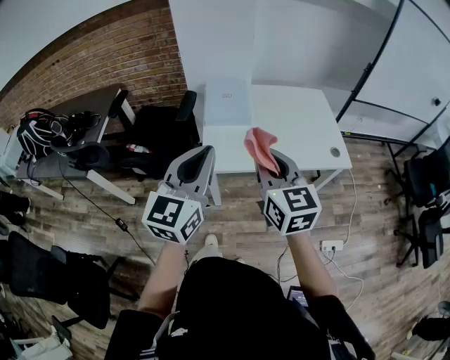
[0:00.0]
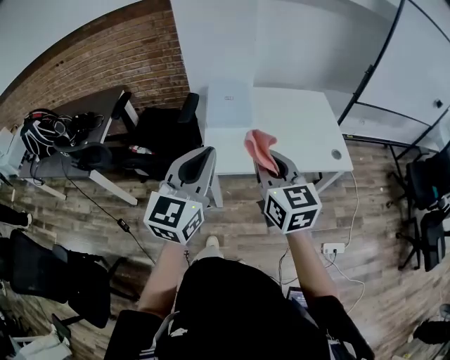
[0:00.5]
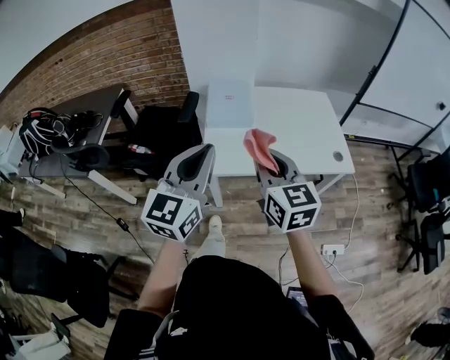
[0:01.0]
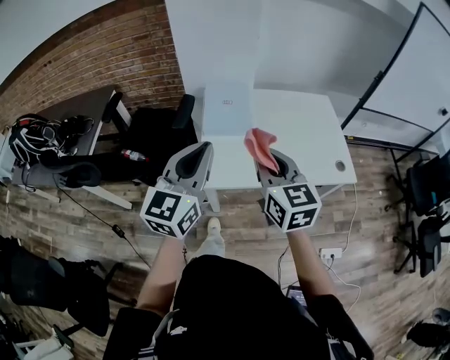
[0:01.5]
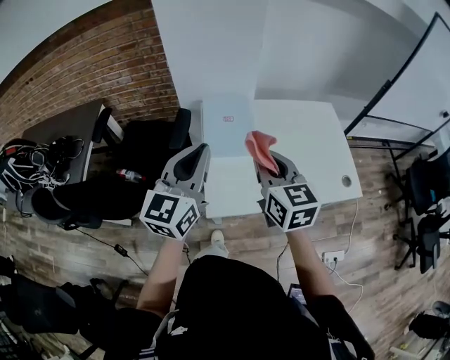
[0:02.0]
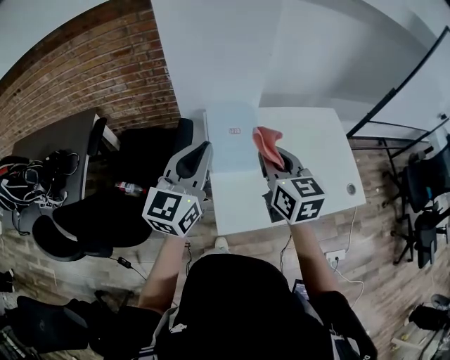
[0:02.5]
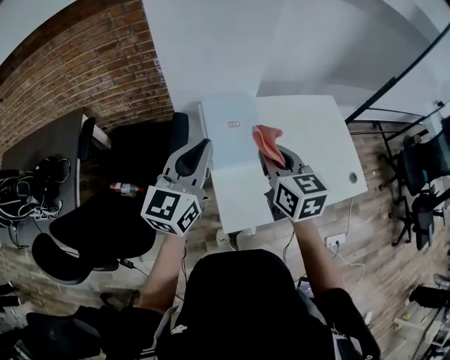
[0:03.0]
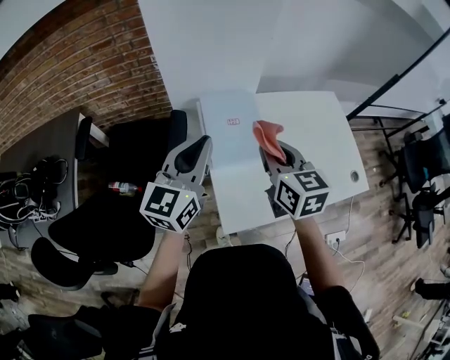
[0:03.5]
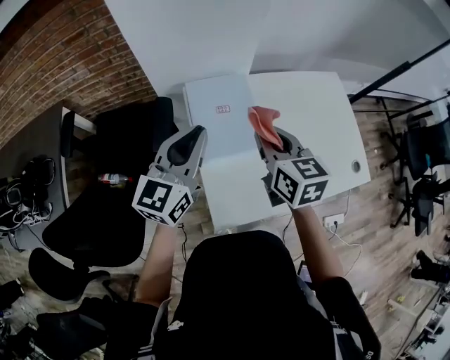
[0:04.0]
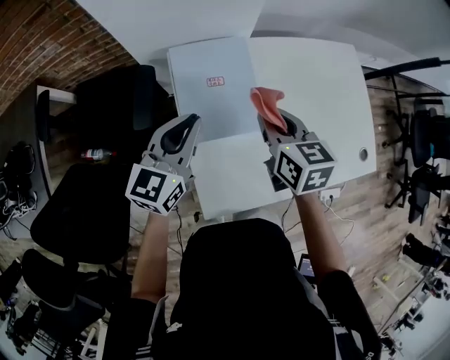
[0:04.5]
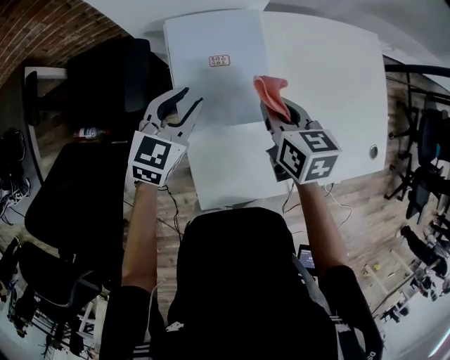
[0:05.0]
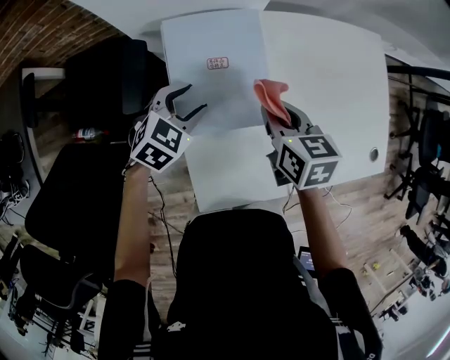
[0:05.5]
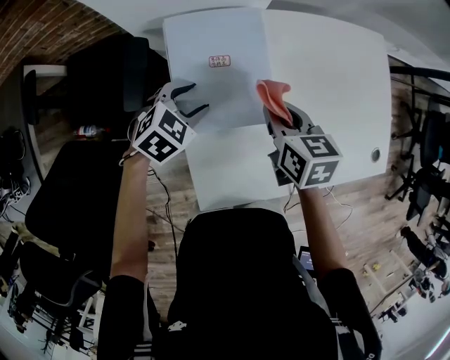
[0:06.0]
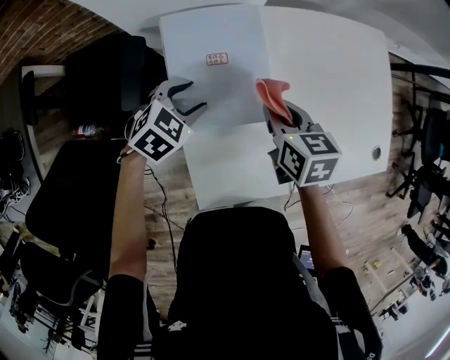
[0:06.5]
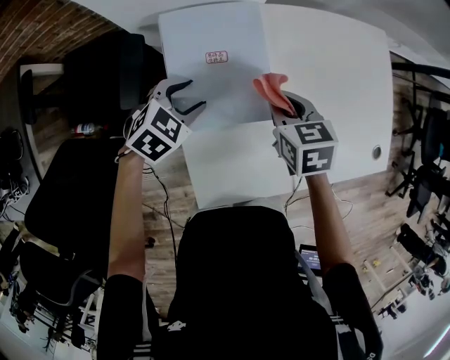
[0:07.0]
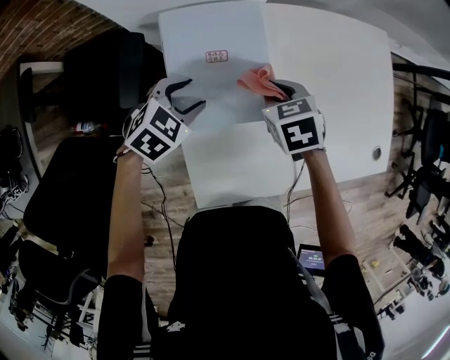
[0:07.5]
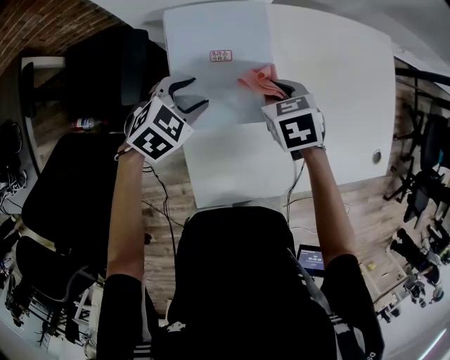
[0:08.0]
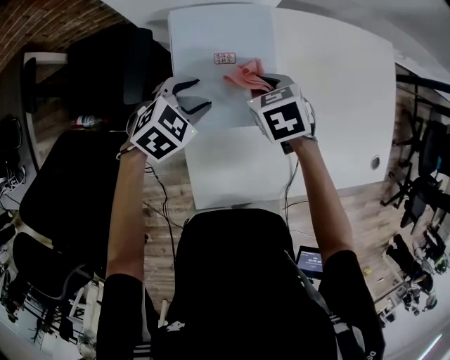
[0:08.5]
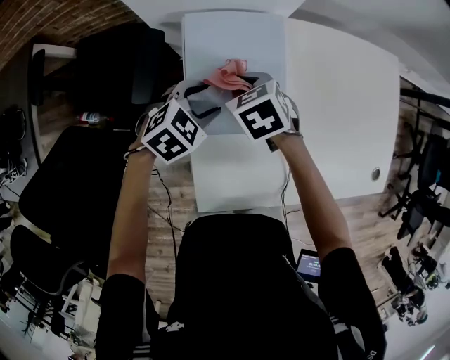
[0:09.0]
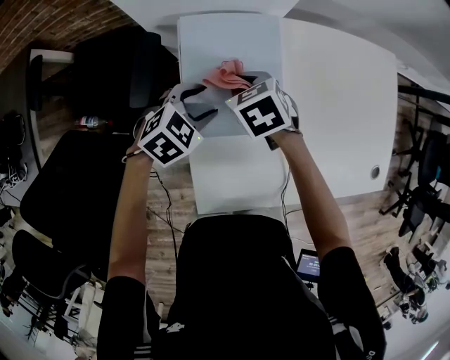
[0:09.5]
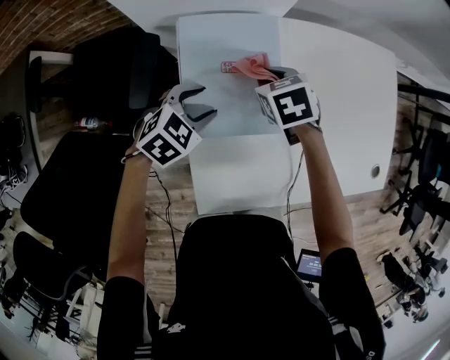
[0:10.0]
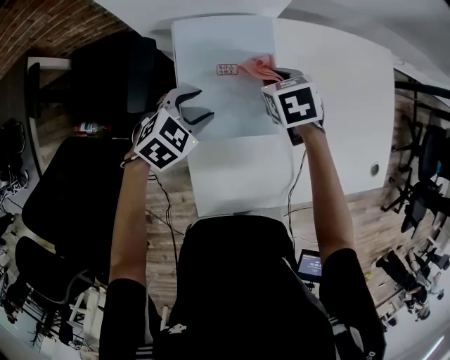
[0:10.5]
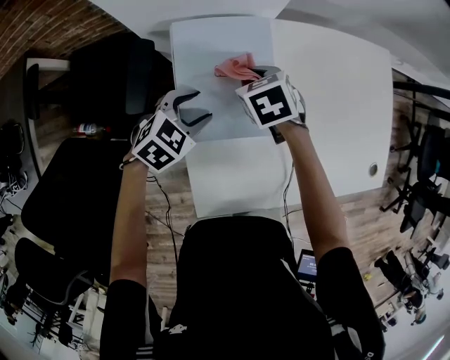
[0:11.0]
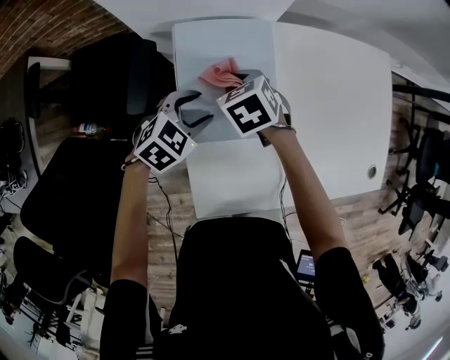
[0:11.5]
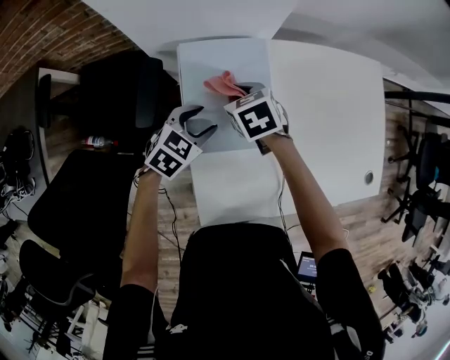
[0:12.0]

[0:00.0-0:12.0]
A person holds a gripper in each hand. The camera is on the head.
0:00.0 to 0:02.0: The two grippers go some 25 cm forward.
0:02.0 to 0:04.0: The grippers both shift forward and downward by about 20 cm.
0:04.0 to 0:06.0: The right gripper moves downward, some 20 cm, and changes its angle by roughly 20 degrees. The left gripper is displaced downward by about 30 cm, points its fingers some 50 degrees further downward, and opens its fingers.
0:06.0 to 0:08.0: The right gripper is displaced downward by some 5 cm, and swivels roughly 30 degrees.
0:08.0 to 0:10.0: The right gripper goes some 5 cm forward.
0:10.0 to 0:12.0: The right gripper goes some 5 cm to the left.

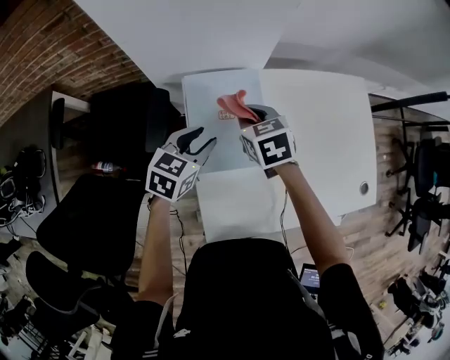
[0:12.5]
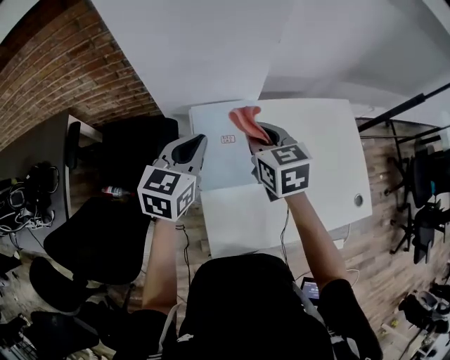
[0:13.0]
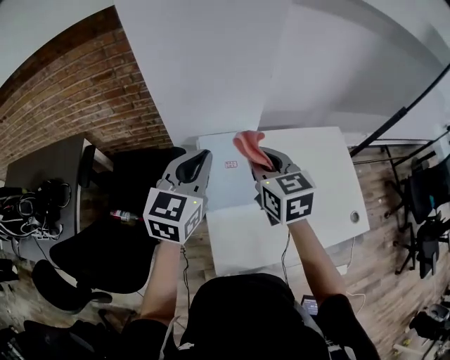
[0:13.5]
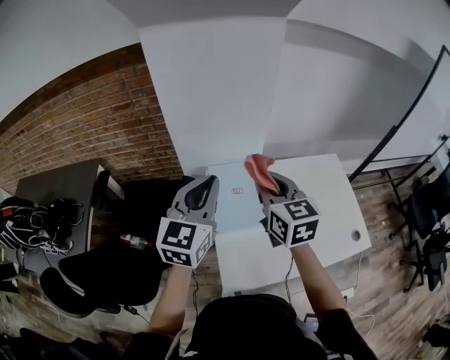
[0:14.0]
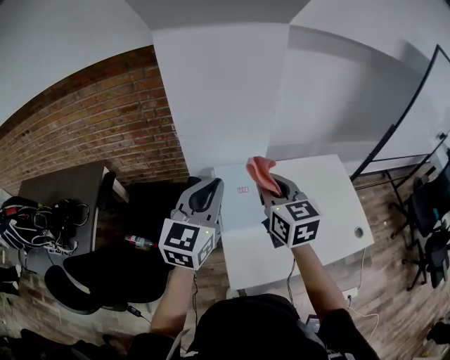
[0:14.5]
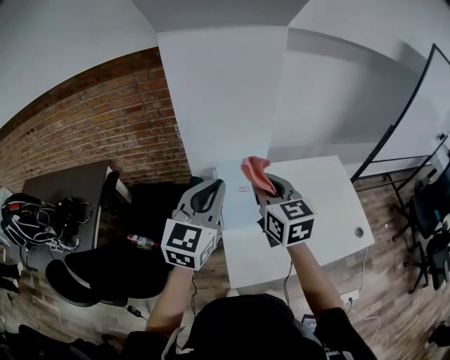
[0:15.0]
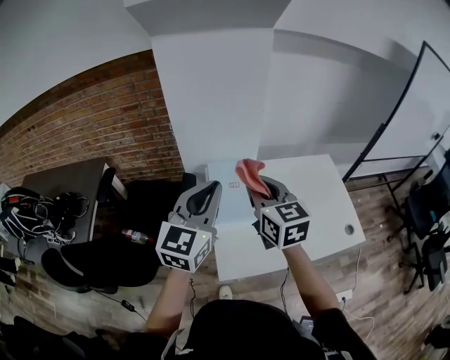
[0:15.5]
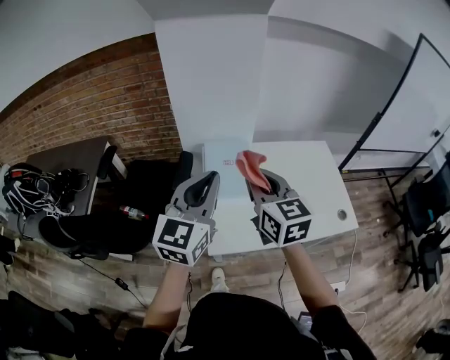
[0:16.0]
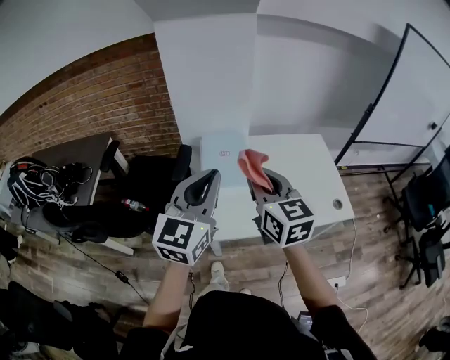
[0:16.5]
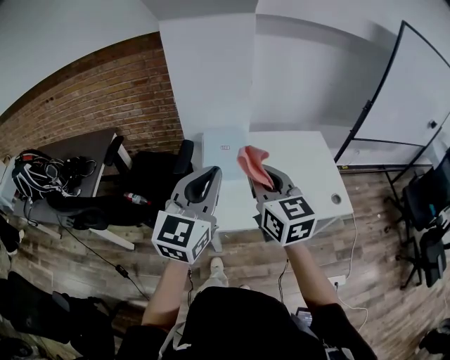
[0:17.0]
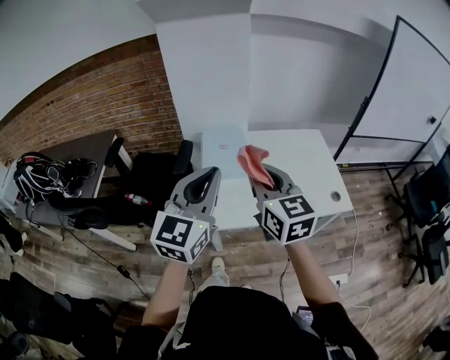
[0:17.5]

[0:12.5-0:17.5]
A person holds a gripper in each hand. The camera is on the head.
0:12.5 to 0:15.0: Both grippers travel together upward and backward, some 35 cm. The left gripper angles its fingers upward, by some 30 degrees, and closes its fingers. The right gripper points its fingers some 40 degrees further upward.
0:15.0 to 0:17.5: The two grippers go roughly 30 cm backward and to the right.

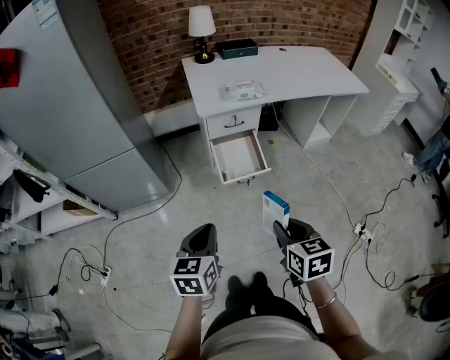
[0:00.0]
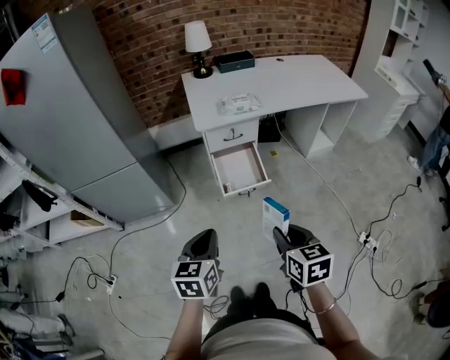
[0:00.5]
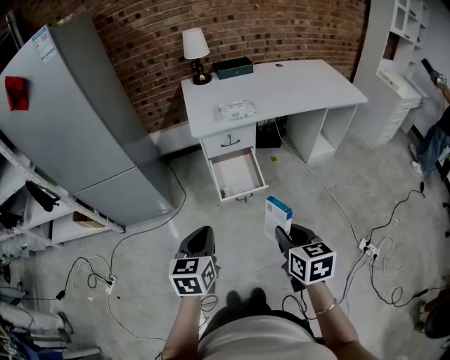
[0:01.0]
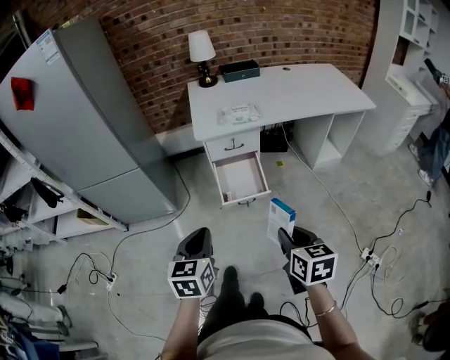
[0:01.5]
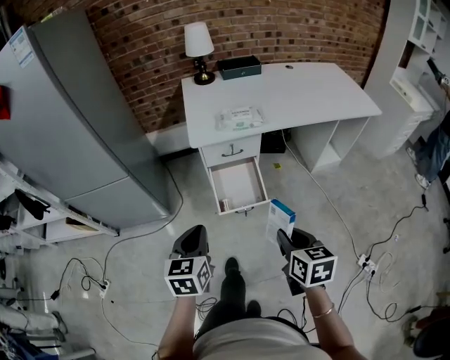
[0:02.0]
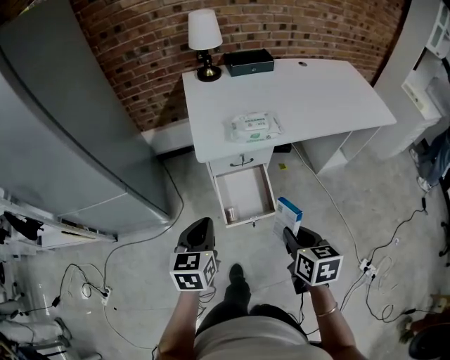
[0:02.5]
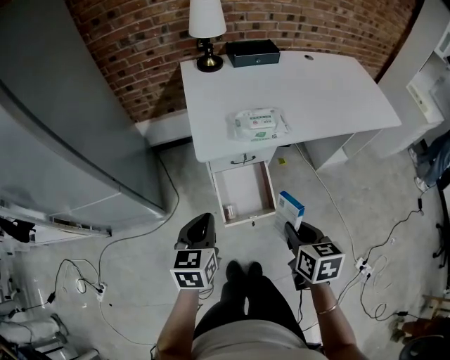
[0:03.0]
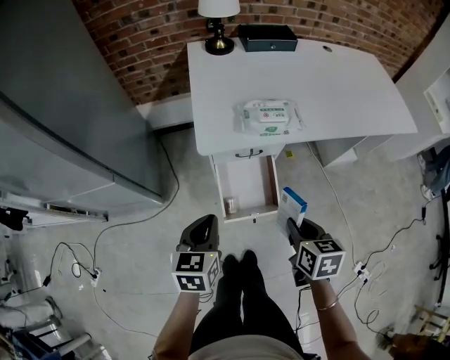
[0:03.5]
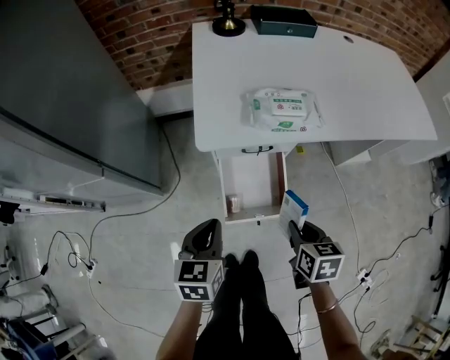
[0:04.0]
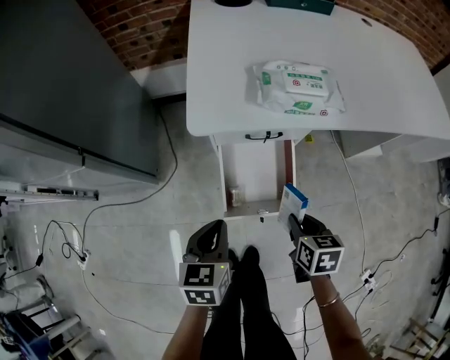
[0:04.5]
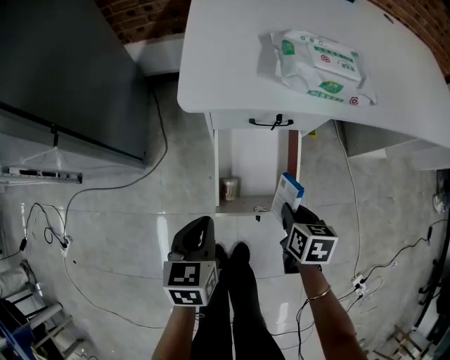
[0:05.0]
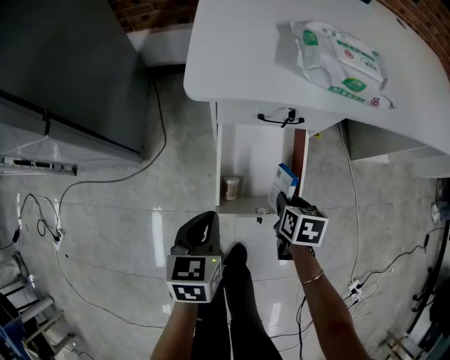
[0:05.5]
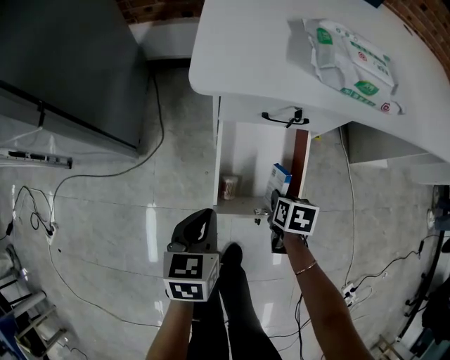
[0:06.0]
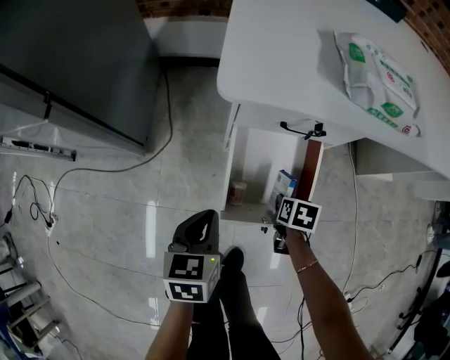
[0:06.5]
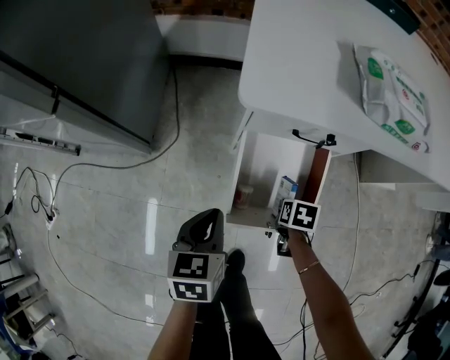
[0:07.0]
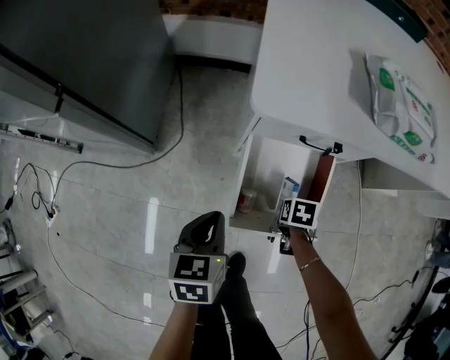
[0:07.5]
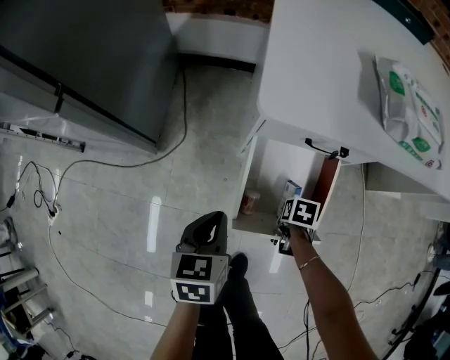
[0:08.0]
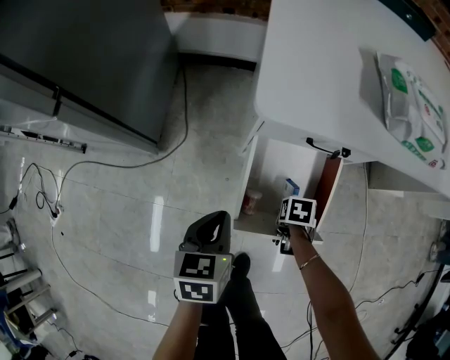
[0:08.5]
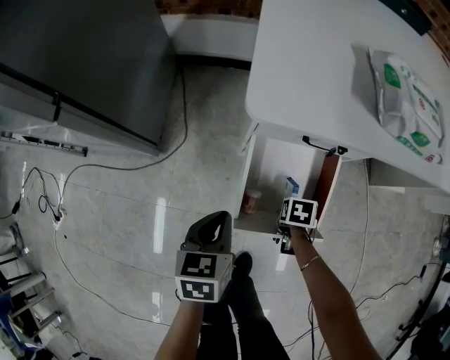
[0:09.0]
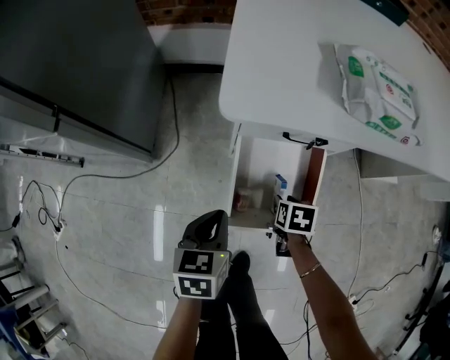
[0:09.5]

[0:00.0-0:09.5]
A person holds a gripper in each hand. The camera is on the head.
0:00.0 to 0:02.0: The grippers both shift forward and to the right by approximately 20 cm.
0:02.0 to 0:04.0: The grippers both shift forward and downward by roughly 35 cm.
0:04.0 to 0:05.5: Both grippers travel together downward, about 25 cm.
0:05.5 to 0:07.5: The right gripper is displaced downward by some 10 cm. The left gripper shifts by some 5 cm.
0:07.5 to 0:09.5: The right gripper shifts roughly 5 cm upward.
